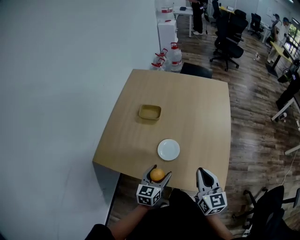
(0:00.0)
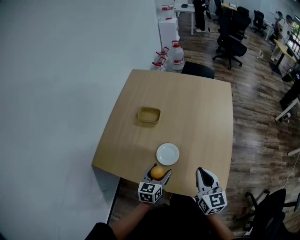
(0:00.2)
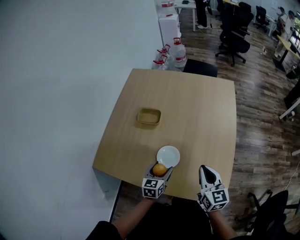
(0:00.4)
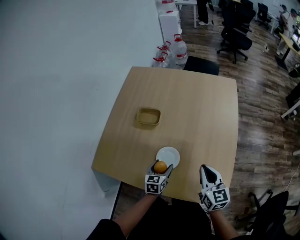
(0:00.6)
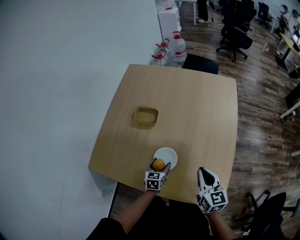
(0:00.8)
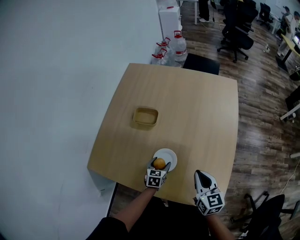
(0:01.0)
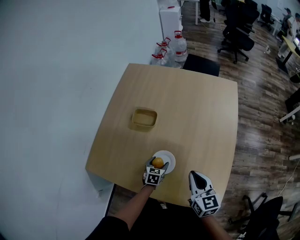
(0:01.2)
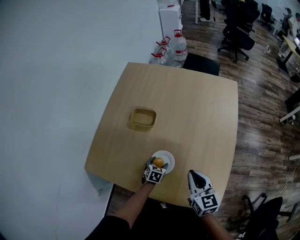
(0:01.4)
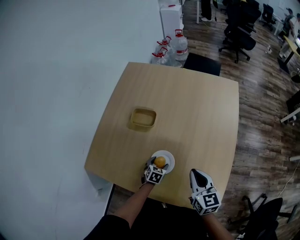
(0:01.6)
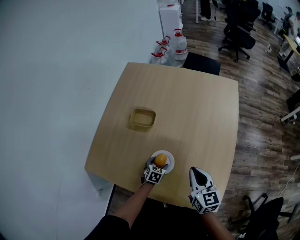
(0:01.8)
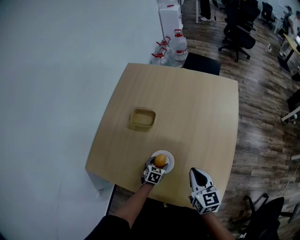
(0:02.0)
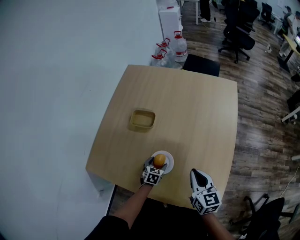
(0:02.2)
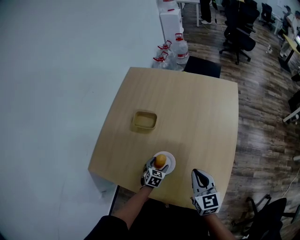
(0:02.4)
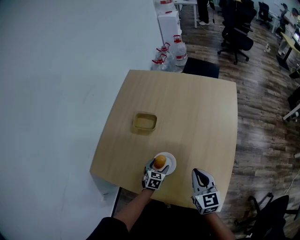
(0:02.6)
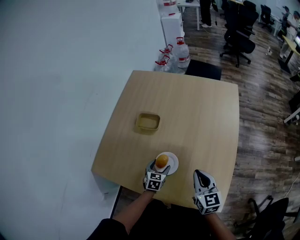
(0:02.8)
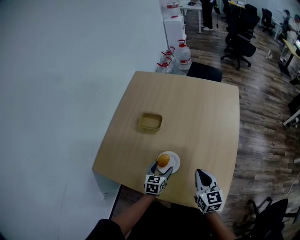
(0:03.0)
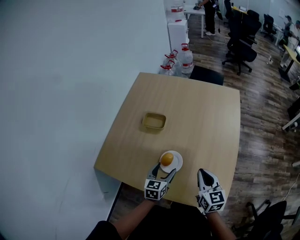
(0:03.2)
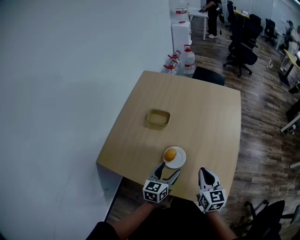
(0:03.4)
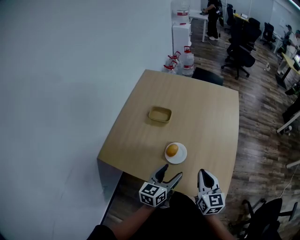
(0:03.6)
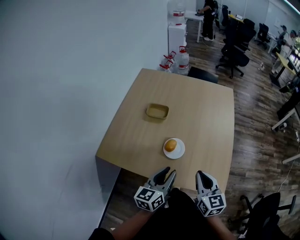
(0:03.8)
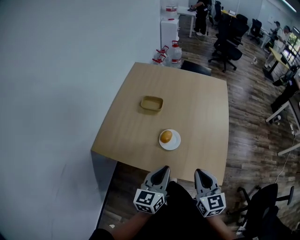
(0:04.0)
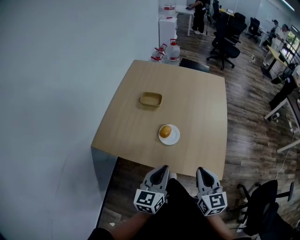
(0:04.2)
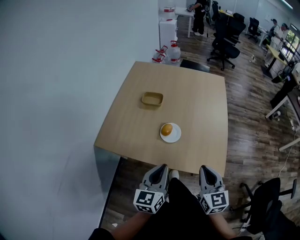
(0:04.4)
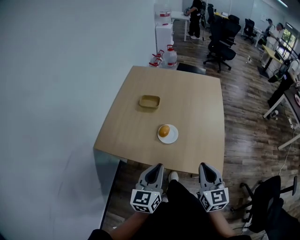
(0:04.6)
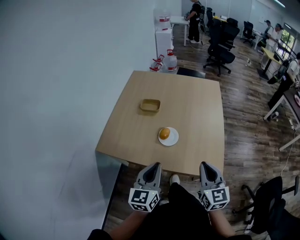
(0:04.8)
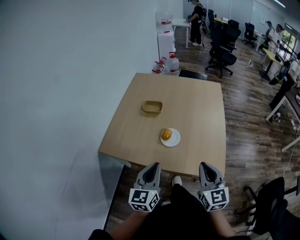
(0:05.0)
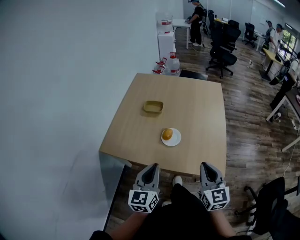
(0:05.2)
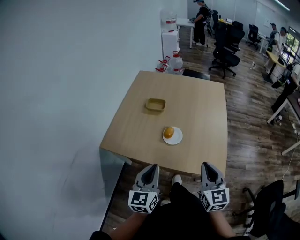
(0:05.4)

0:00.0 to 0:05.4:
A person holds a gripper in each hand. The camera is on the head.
0:00.0 to 0:01.4: The left gripper moves downward and forward, roughly 30 cm, and tips its fingers downward by roughly 30 degrees. Meanwhile the right gripper moves forward and downward, about 15 cm.
0:01.4 to 0:02.8: The left gripper is displaced upward by roughly 5 cm.
0:02.8 to 0:04.0: The left gripper heads upward and backward, covering approximately 35 cm, points its fingers some 30 degrees further upward, and closes its fingers. The right gripper heads backward and upward, covering about 20 cm.
0:04.0 to 0:05.4: Both grippers travel together backward, about 5 cm.

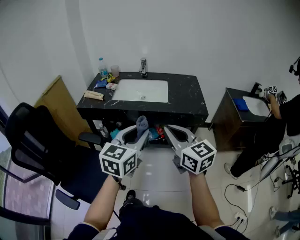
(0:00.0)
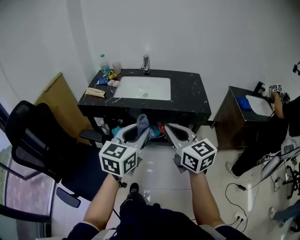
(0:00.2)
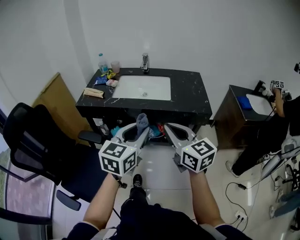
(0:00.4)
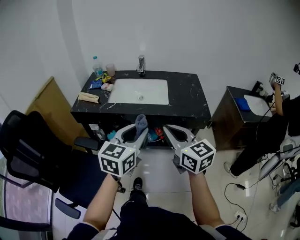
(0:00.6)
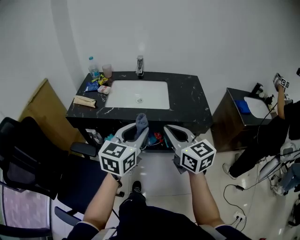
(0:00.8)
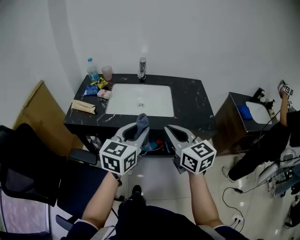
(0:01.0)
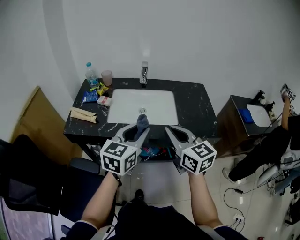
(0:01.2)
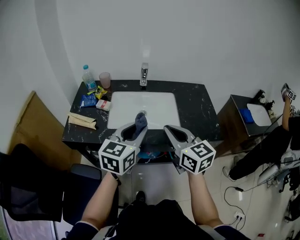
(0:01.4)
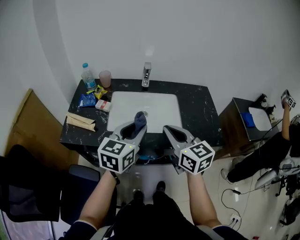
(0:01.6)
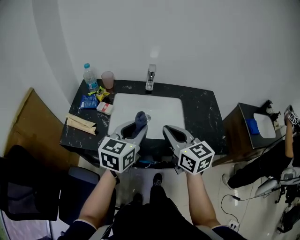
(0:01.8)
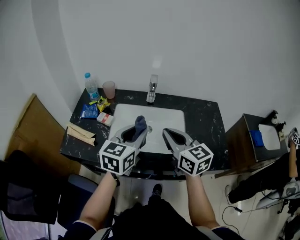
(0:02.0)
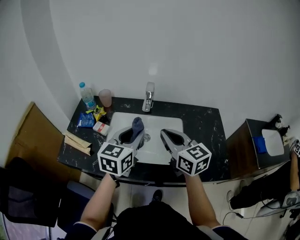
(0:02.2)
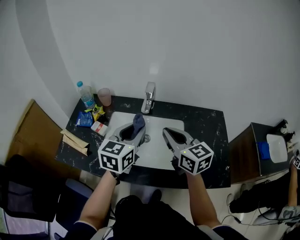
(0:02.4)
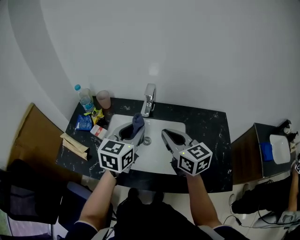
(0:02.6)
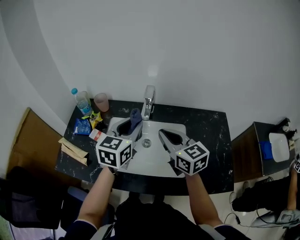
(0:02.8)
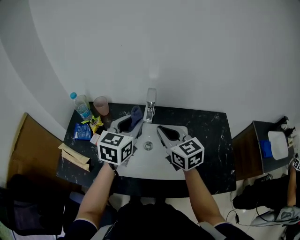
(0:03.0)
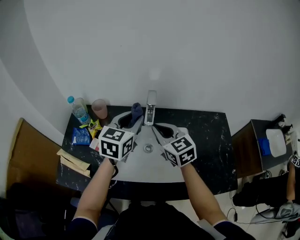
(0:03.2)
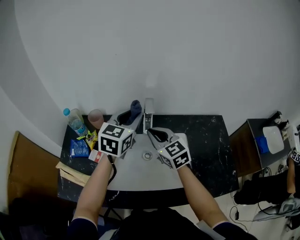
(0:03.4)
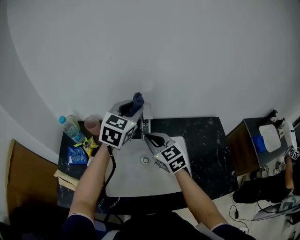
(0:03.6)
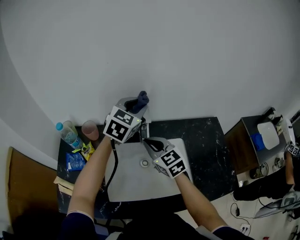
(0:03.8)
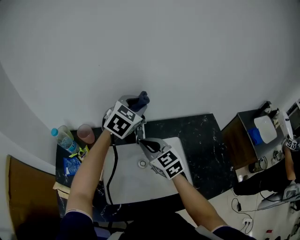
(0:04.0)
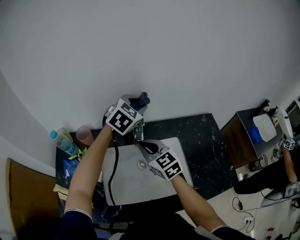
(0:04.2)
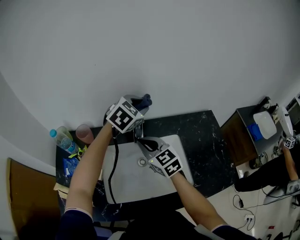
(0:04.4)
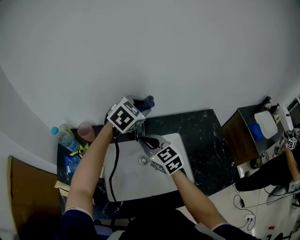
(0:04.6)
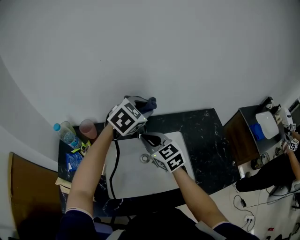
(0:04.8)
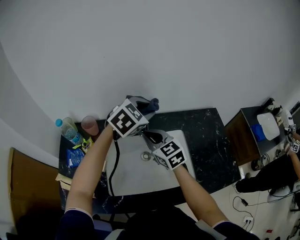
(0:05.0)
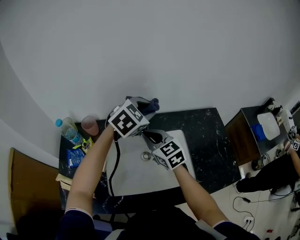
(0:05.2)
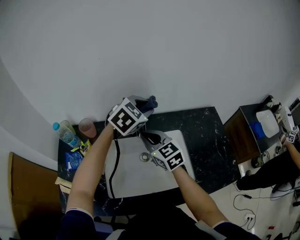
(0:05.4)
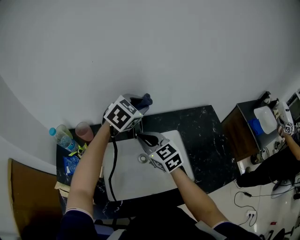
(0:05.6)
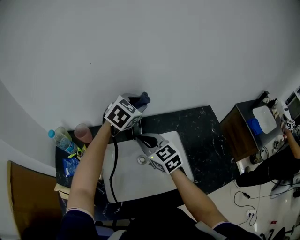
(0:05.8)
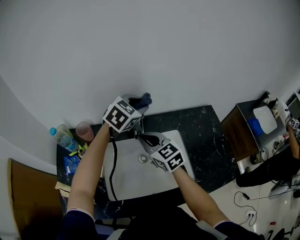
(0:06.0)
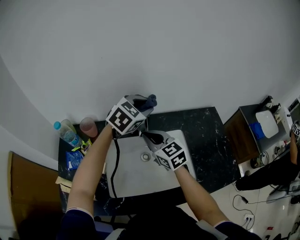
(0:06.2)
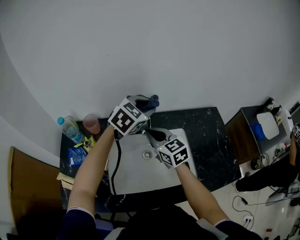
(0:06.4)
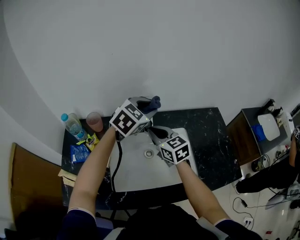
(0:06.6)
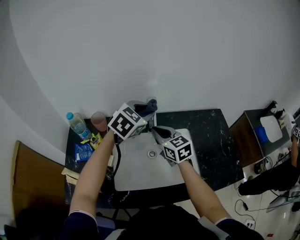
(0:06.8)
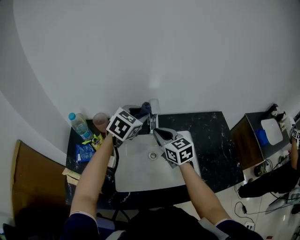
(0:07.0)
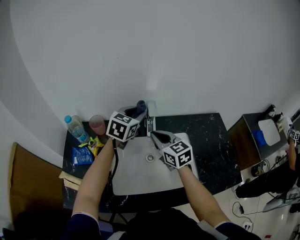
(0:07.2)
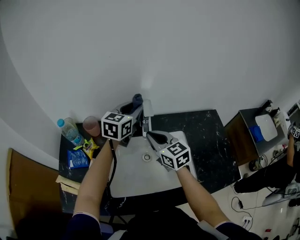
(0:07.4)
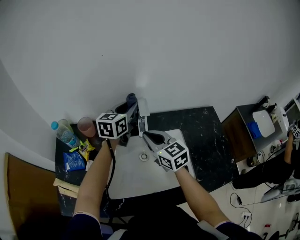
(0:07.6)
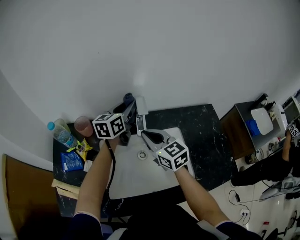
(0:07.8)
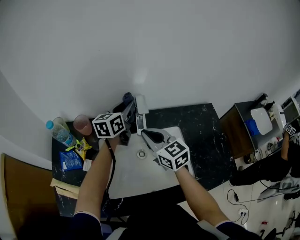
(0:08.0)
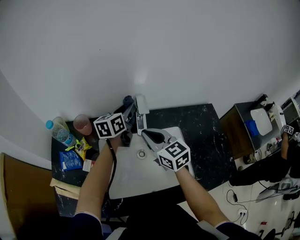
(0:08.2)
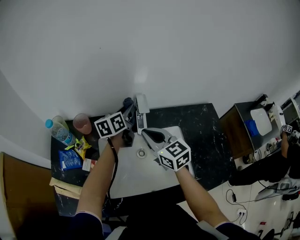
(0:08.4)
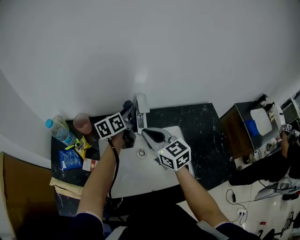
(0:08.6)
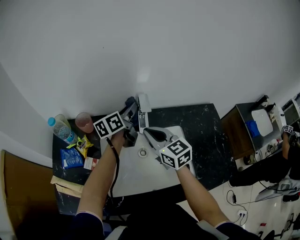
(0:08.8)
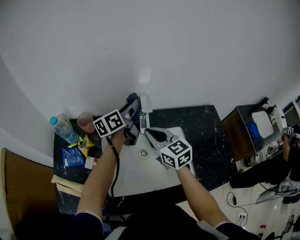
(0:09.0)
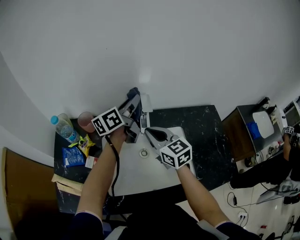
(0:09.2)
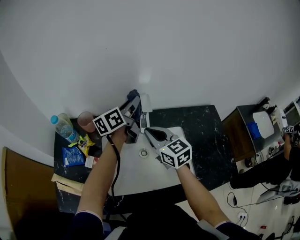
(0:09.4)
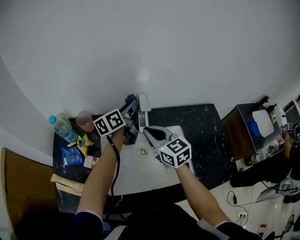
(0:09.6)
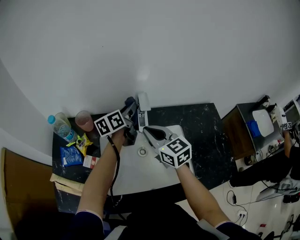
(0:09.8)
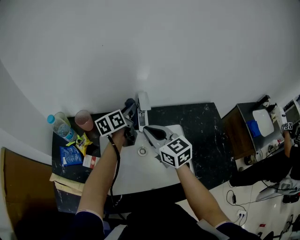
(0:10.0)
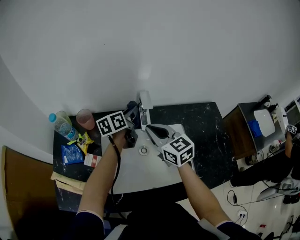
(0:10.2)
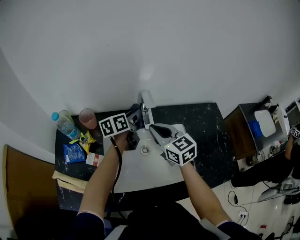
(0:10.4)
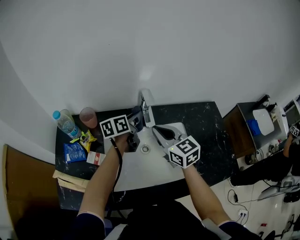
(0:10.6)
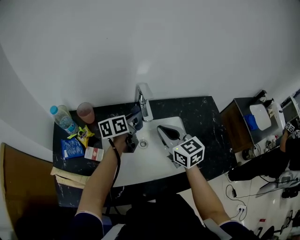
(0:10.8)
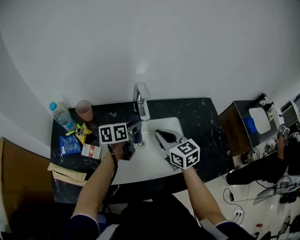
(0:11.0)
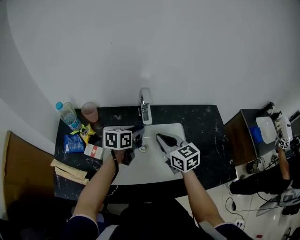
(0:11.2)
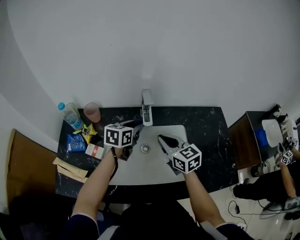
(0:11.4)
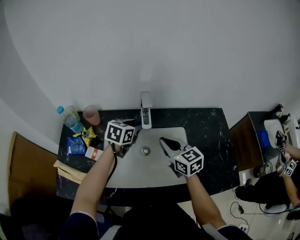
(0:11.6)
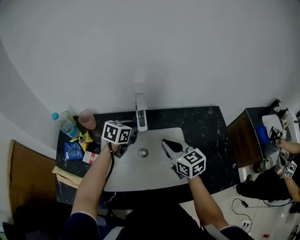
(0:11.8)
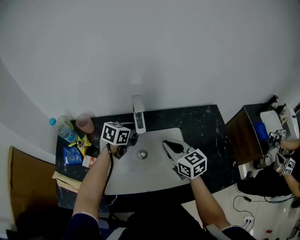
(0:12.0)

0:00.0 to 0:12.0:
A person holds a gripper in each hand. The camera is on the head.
0:00.0 to 0:01.6: Both grippers travel together forward, about 30 cm.
0:01.6 to 0:03.0: The grippers both shift forward by some 25 cm.
0:03.0 to 0:04.4: The left gripper is displaced forward and to the right by roughly 20 cm, and rotates roughly 40 degrees; the right gripper travels forward, downward and to the left by some 10 cm.
0:04.4 to 0:06.0: The grippers stay close to where they were, moving slightly.
0:06.0 to 0:07.6: The left gripper shifts approximately 10 cm to the left, goes backward and returns, about 5 cm each way, and turns by approximately 40 degrees.
0:07.6 to 0:09.0: The left gripper reaches roughly 10 cm downward, then returns, and swivels roughly 40 degrees.
0:09.0 to 0:10.4: The left gripper goes roughly 5 cm downward.
0:10.4 to 0:12.0: The right gripper travels to the right by approximately 10 cm, while the left gripper rotates approximately 40 degrees.

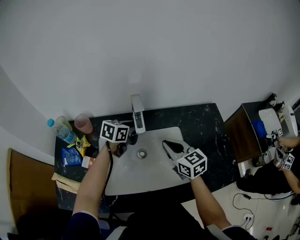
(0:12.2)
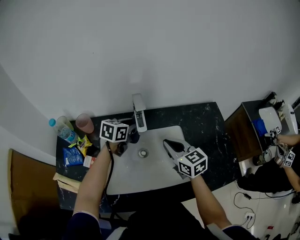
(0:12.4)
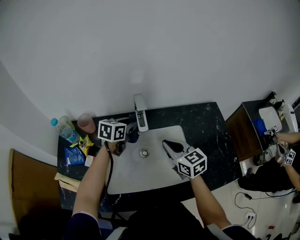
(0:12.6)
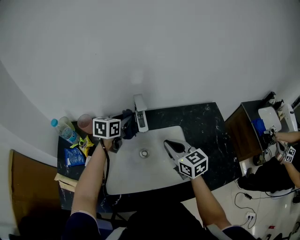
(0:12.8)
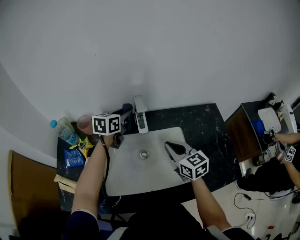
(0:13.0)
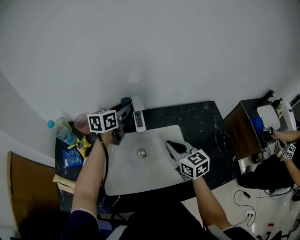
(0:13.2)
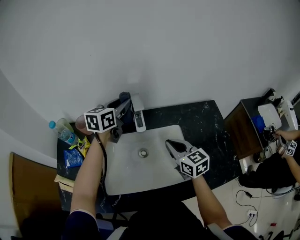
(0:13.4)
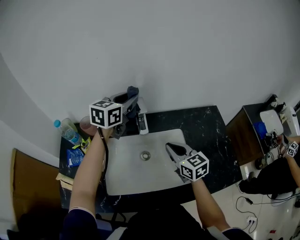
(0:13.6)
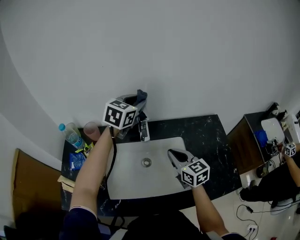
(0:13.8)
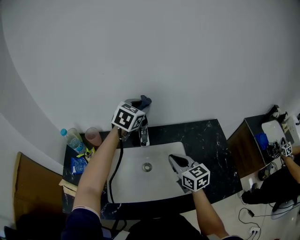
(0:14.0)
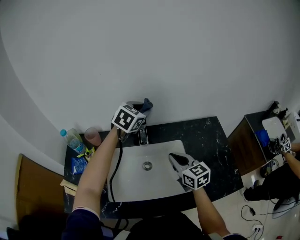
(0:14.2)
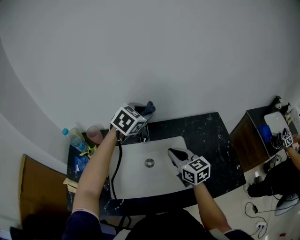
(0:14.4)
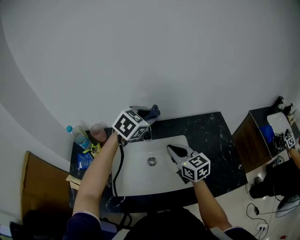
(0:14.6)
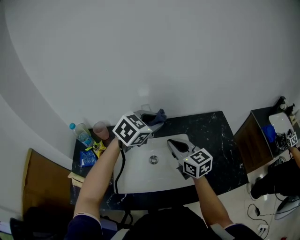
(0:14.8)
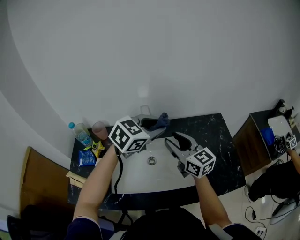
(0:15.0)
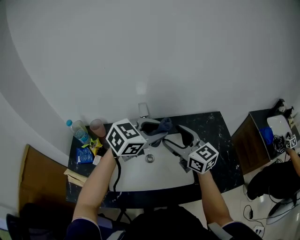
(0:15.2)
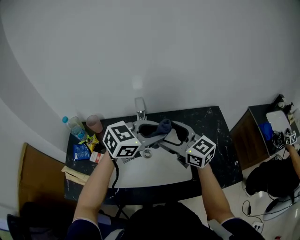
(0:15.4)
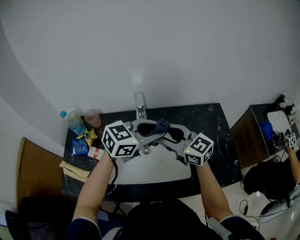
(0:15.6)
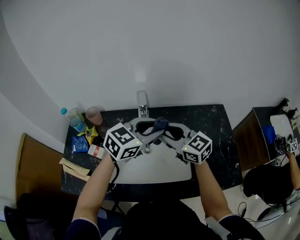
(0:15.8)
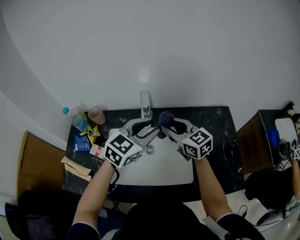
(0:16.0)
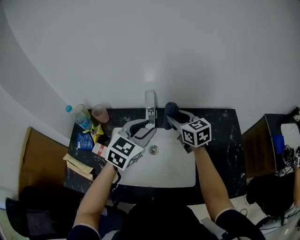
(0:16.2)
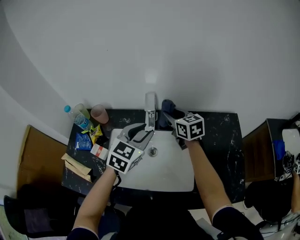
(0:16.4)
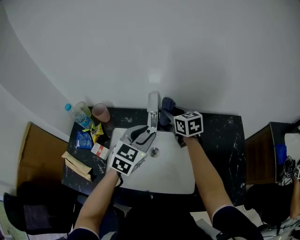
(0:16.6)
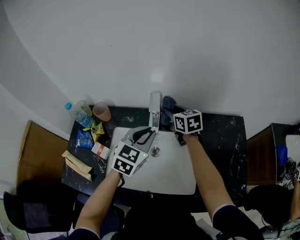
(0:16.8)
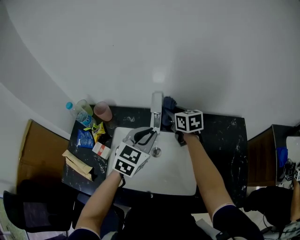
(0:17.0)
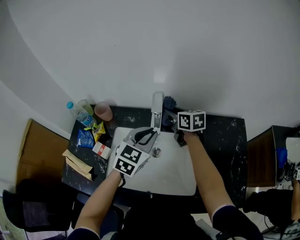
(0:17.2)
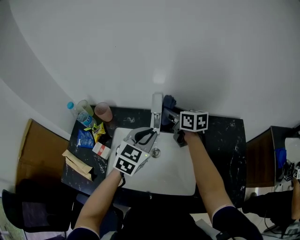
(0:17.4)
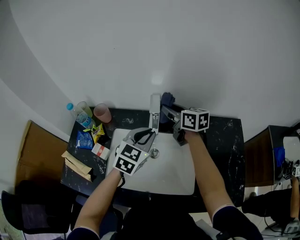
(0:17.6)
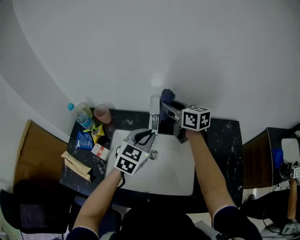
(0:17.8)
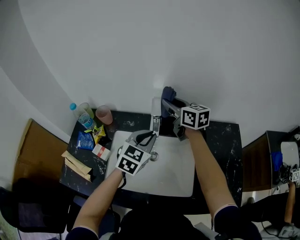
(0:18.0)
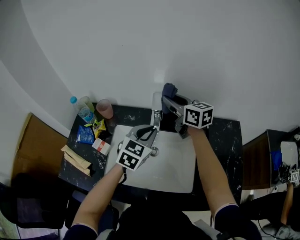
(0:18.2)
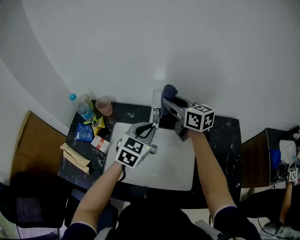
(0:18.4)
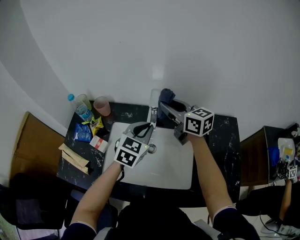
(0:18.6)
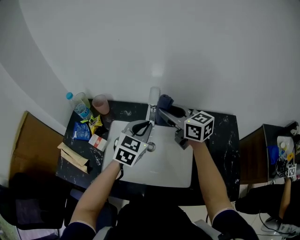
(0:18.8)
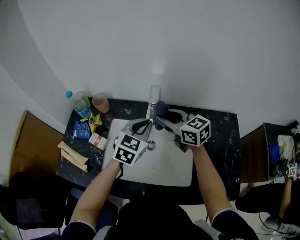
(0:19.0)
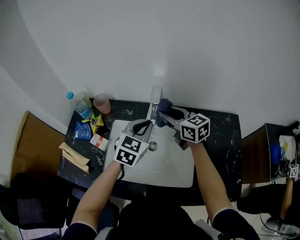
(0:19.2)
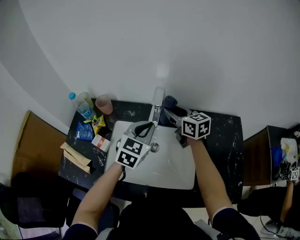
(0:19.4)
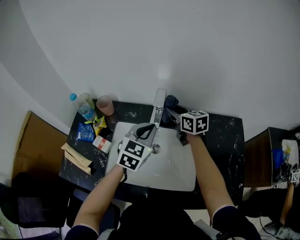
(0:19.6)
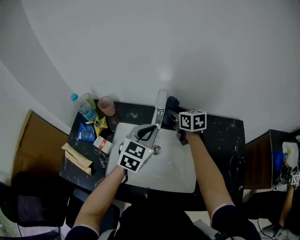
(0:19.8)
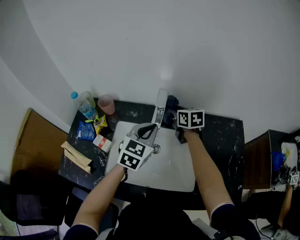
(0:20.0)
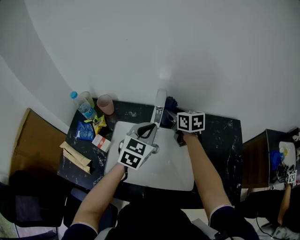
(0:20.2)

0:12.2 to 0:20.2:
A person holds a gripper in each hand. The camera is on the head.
0:12.2 to 0:13.8: The left gripper goes some 20 cm upward, and turns by about 30 degrees.
0:13.8 to 0:15.4: The left gripper heads backward and to the right, covering about 20 cm, and changes its angle by approximately 30 degrees, while the right gripper shifts roughly 10 cm upward, swivels roughly 20 degrees, and opens.
0:15.4 to 0:17.0: The right gripper is displaced forward and downward by roughly 25 cm, rotates about 30 degrees, and closes up. The left gripper heads to the left, downward and forward, covering approximately 15 cm, and rotates approximately 40 degrees.
0:17.0 to 0:18.6: The right gripper goes roughly 15 cm upward and backward, and turns by approximately 20 degrees.
0:18.6 to 0:20.2: The right gripper travels downward by roughly 10 cm, and swivels approximately 20 degrees.